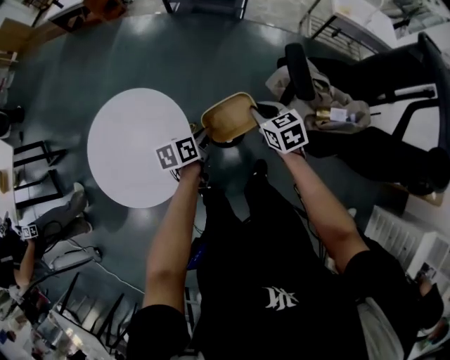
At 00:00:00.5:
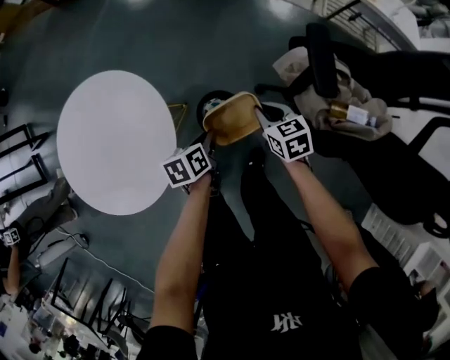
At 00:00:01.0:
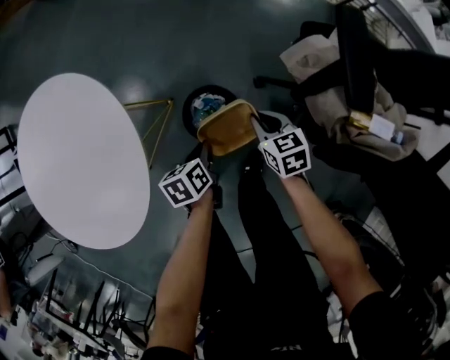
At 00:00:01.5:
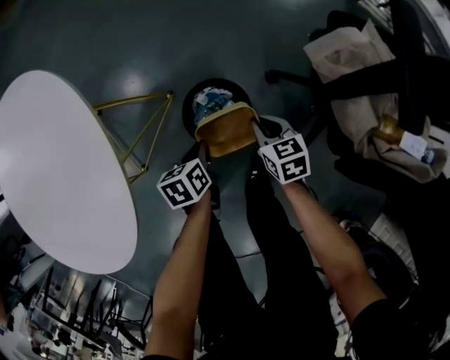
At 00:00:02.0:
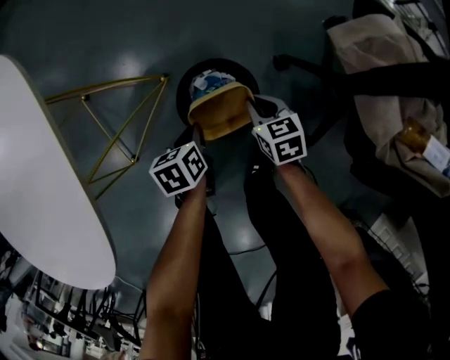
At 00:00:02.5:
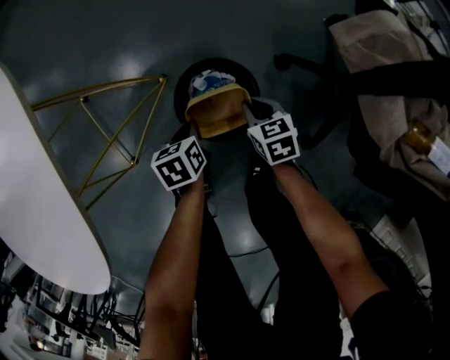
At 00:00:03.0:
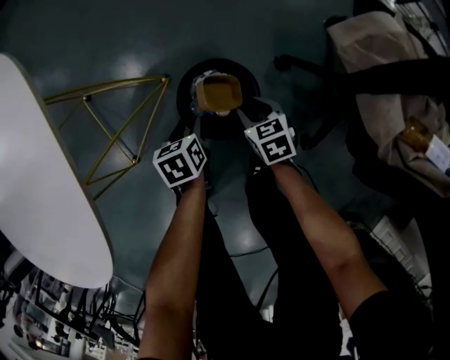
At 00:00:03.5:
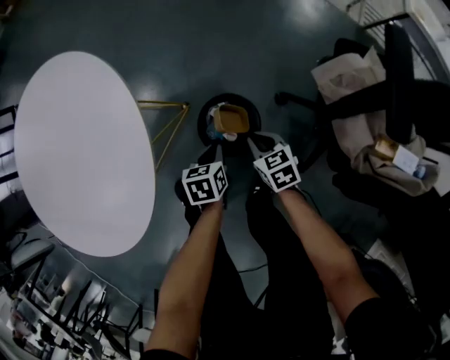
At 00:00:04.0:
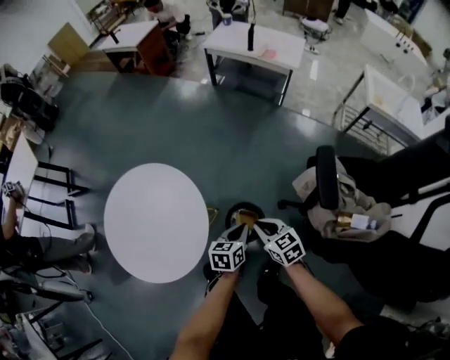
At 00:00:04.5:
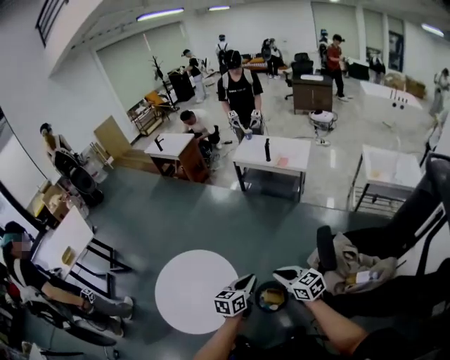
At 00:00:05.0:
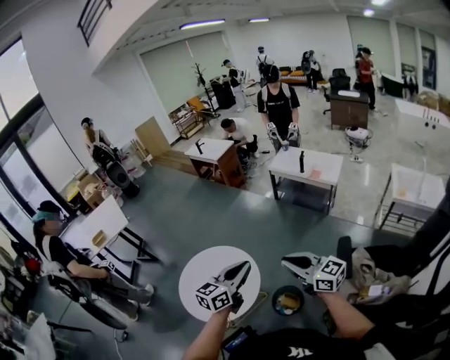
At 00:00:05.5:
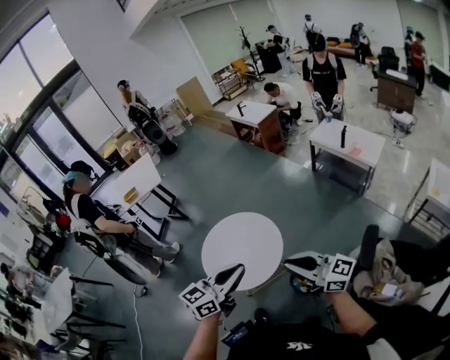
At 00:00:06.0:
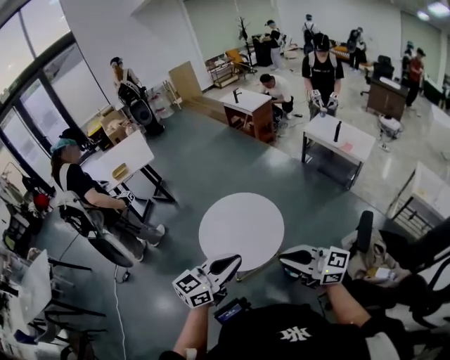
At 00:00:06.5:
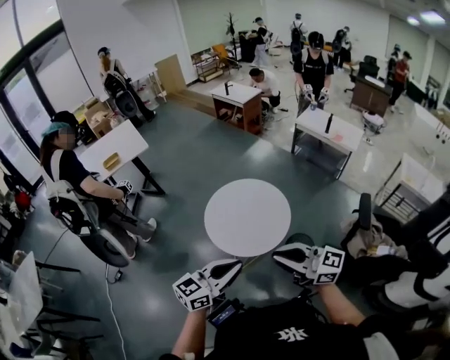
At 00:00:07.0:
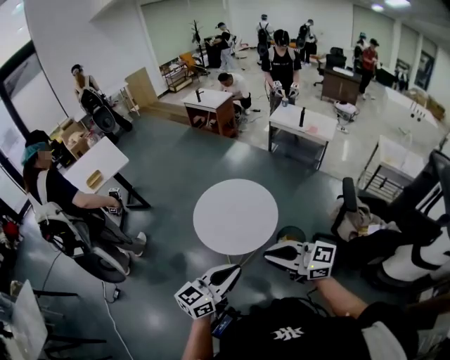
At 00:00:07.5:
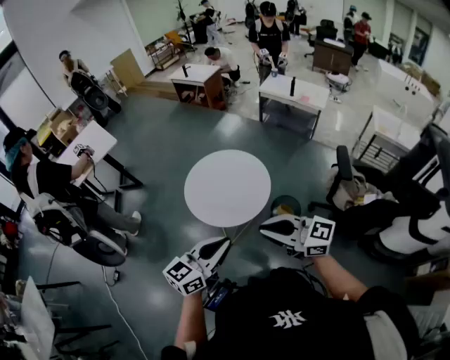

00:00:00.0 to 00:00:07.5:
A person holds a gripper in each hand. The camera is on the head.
00:00:00.0 to 00:00:02.0: The grippers both shift downward by about 50 cm. The left gripper turns by approximately 30 degrees.
00:00:02.0 to 00:00:04.0: Both grippers travel together upward, about 30 cm. The left gripper changes its angle by some 30 degrees, and opens, then closes again. Meanwhile the right gripper opens and closes again.
00:00:04.0 to 00:00:05.5: The two grippers go approximately 40 cm upward. The left gripper points its fingers approximately 30 degrees further upward, while the right gripper points its fingers approximately 50 degrees further upward.
00:00:05.5 to 00:00:07.5: Both grippers travel together to the left and backward, some 30 cm.

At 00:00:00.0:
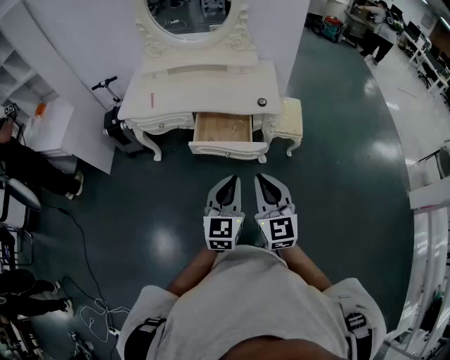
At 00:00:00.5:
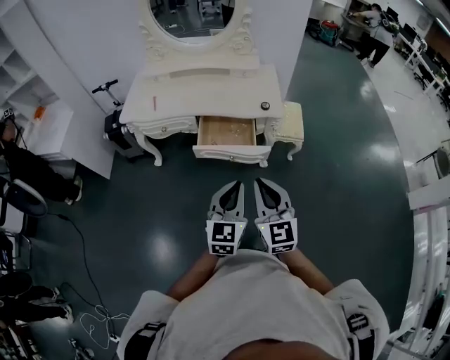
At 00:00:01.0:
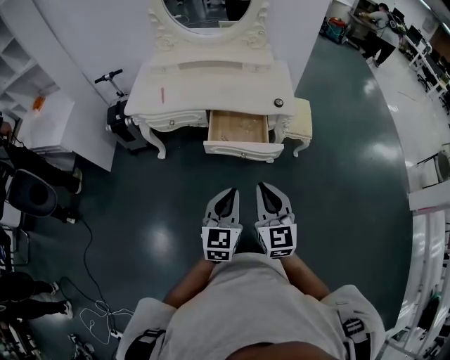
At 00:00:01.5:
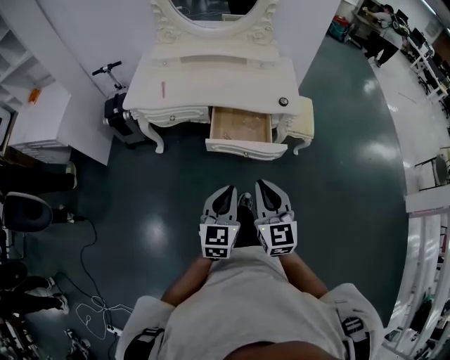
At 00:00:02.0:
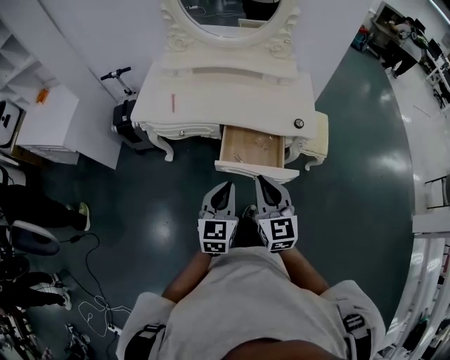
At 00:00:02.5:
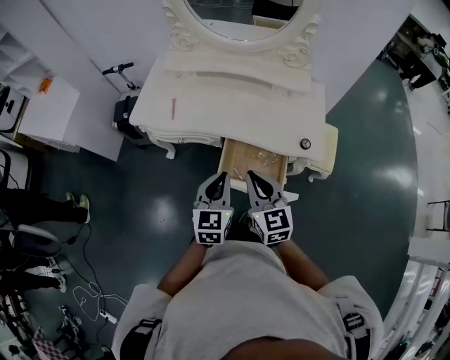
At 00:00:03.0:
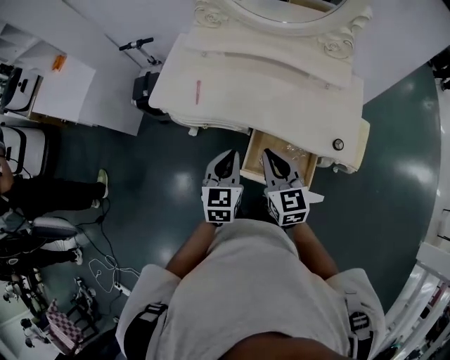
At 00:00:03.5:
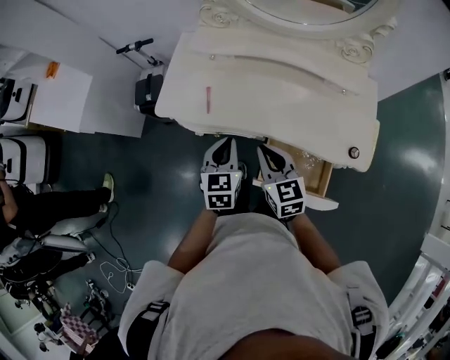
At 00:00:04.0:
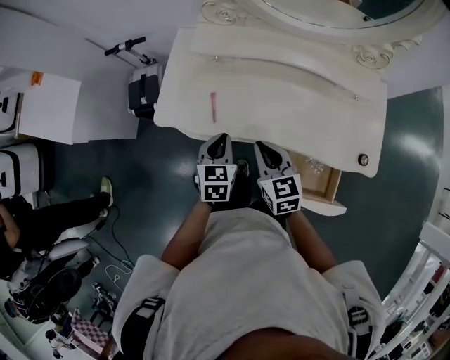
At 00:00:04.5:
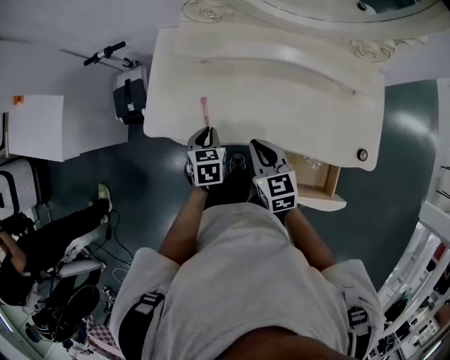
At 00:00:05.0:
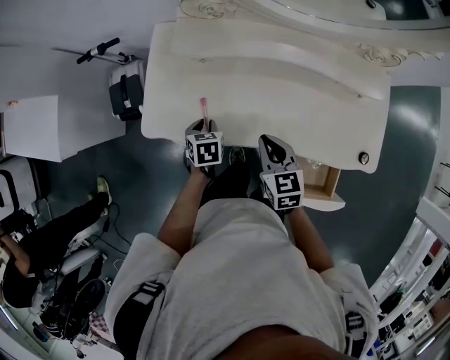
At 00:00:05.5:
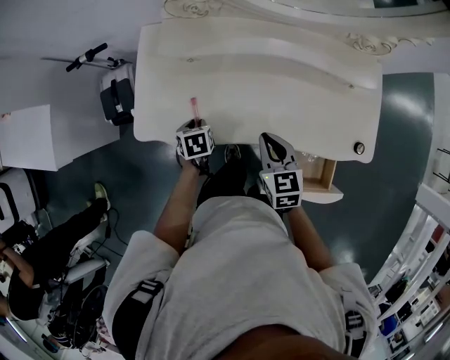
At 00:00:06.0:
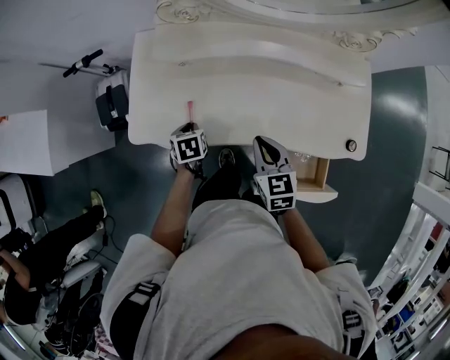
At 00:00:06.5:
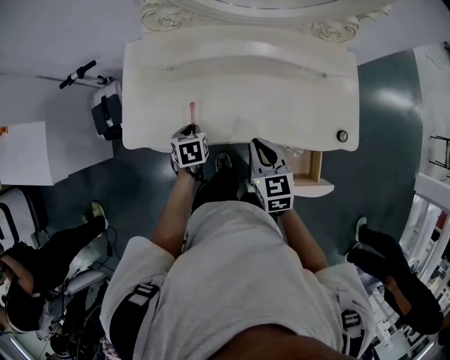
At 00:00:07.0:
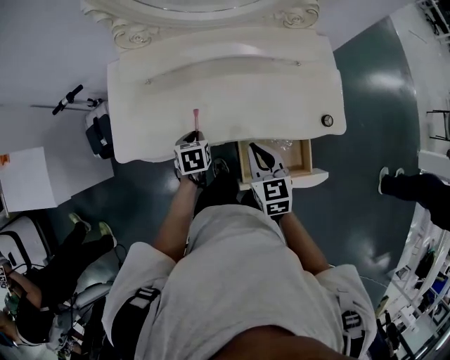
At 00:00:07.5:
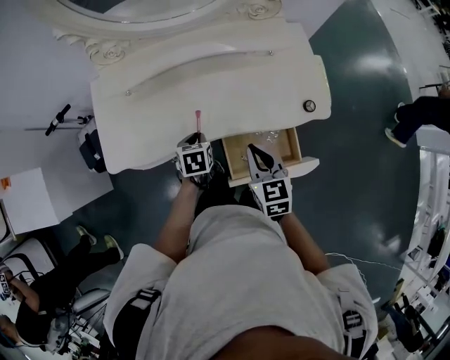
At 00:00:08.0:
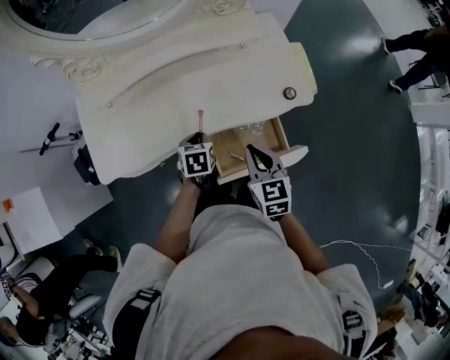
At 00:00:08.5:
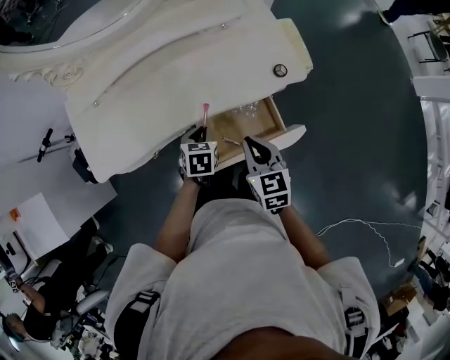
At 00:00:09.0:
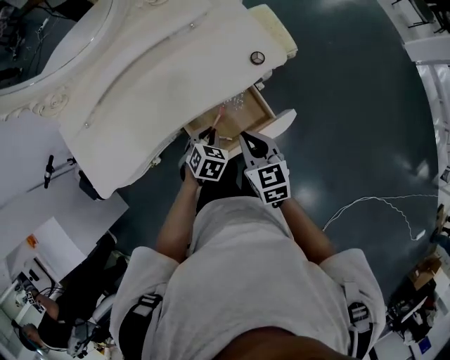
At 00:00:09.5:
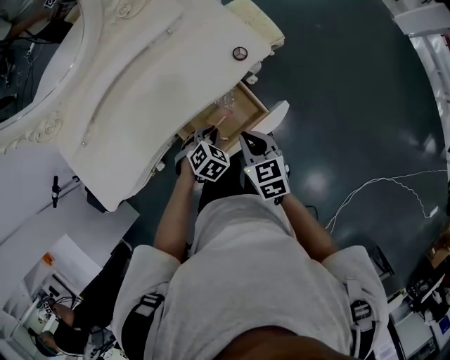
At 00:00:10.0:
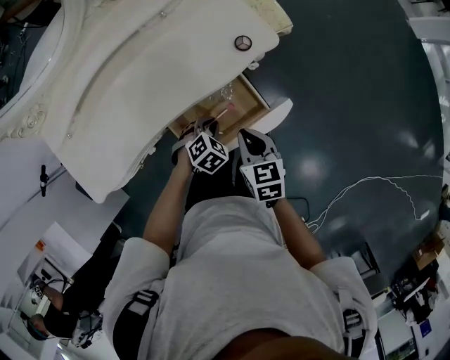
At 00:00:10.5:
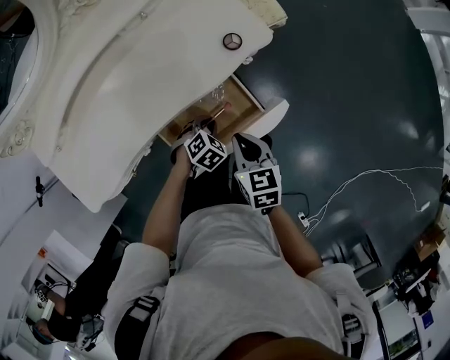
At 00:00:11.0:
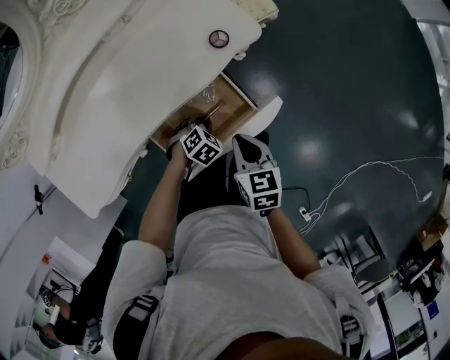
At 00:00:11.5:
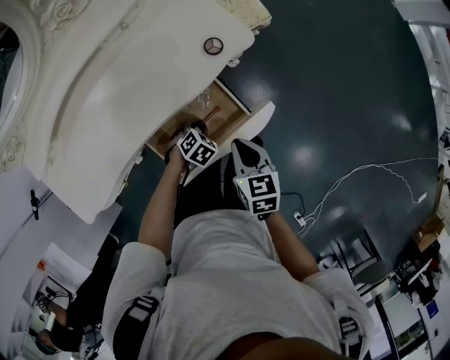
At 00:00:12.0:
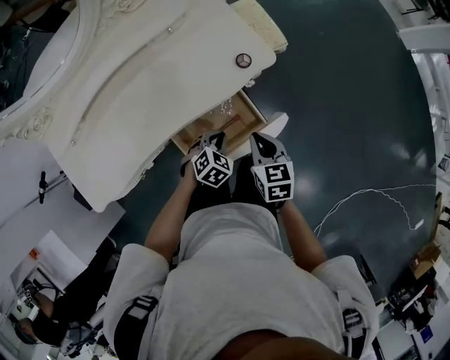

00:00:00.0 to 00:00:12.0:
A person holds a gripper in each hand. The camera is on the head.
00:00:00.0 to 00:00:02.0: The left gripper shifts roughly 25 cm forward, to the left and downward. Meanwhile the right gripper travels forward and to the left by approximately 20 cm.
00:00:02.0 to 00:00:04.0: The two grippers go roughly 40 cm forward. The right gripper rotates approximately 20 degrees; the left gripper changes its angle by approximately 20 degrees.
00:00:04.0 to 00:00:06.0: The left gripper travels downward and forward by approximately 15 cm, and changes its angle by roughly 30 degrees. The right gripper shifts some 5 cm to the right.
00:00:06.0 to 00:00:08.0: The left gripper moves about 30 cm, and turns by roughly 30 degrees. Meanwhile the right gripper changes place by roughly 25 cm, and rotates some 20 degrees.
00:00:08.0 to 00:00:10.0: The left gripper shifts by about 20 cm, and rolls clockwise, seen from behind, by roughly 60 degrees, while the right gripper travels downward by some 10 cm, and changes its angle by approximately 20 degrees.
00:00:10.0 to 00:00:12.0: The left gripper travels downward and back again, some 10 cm each way.

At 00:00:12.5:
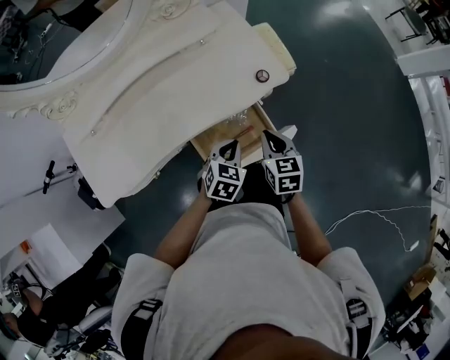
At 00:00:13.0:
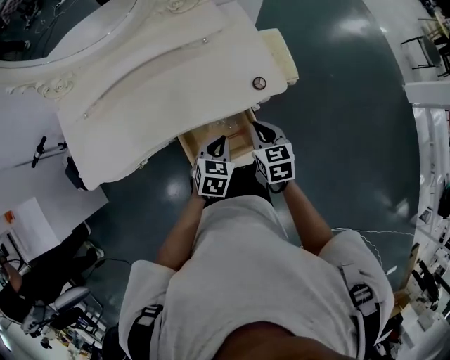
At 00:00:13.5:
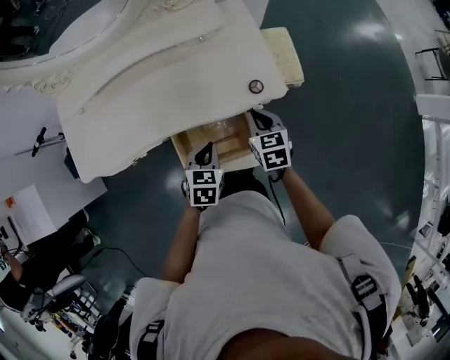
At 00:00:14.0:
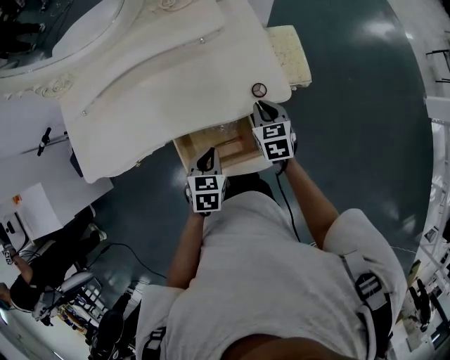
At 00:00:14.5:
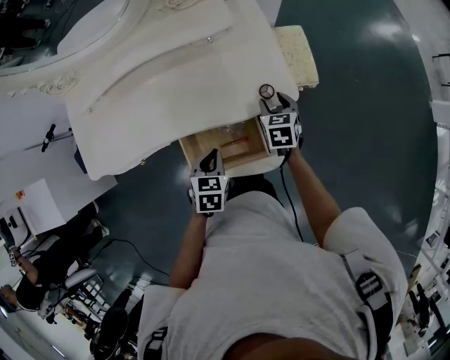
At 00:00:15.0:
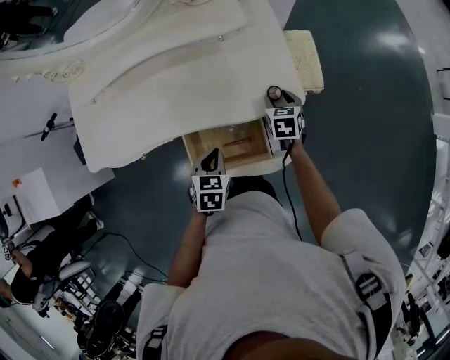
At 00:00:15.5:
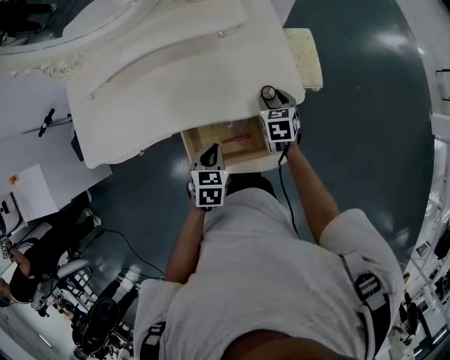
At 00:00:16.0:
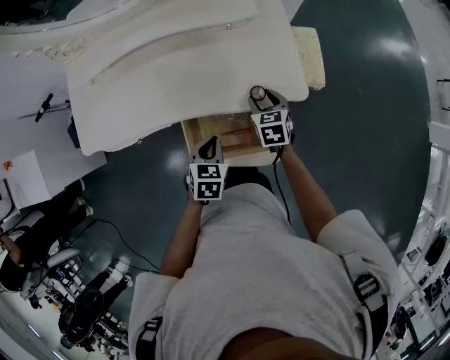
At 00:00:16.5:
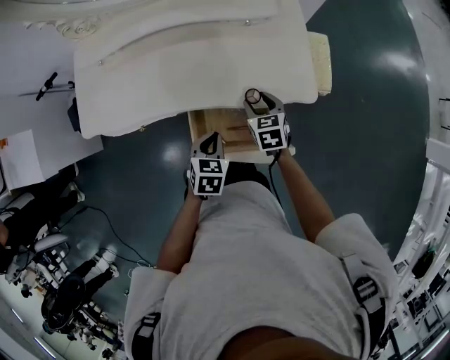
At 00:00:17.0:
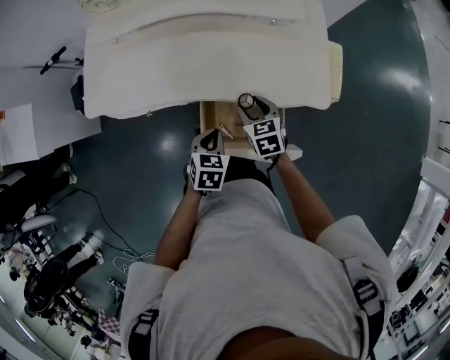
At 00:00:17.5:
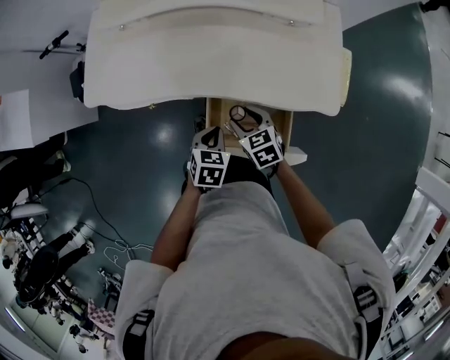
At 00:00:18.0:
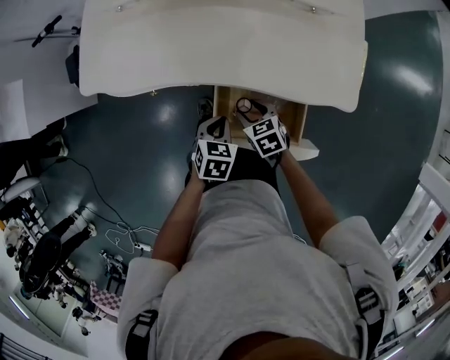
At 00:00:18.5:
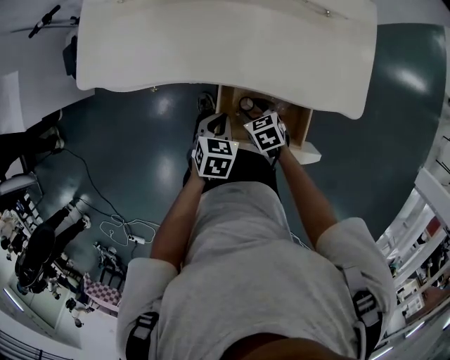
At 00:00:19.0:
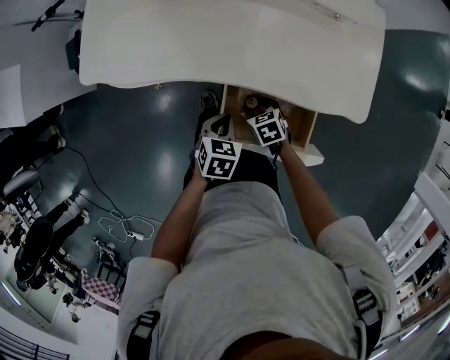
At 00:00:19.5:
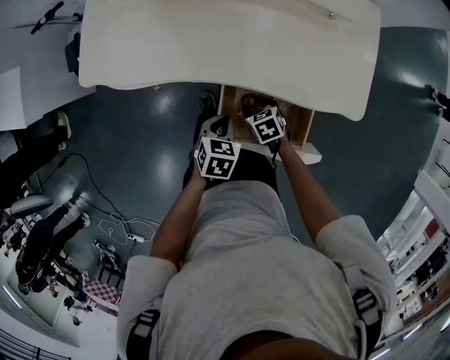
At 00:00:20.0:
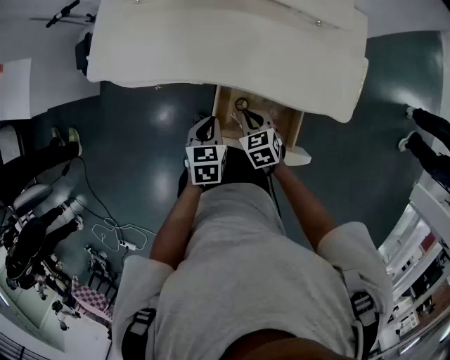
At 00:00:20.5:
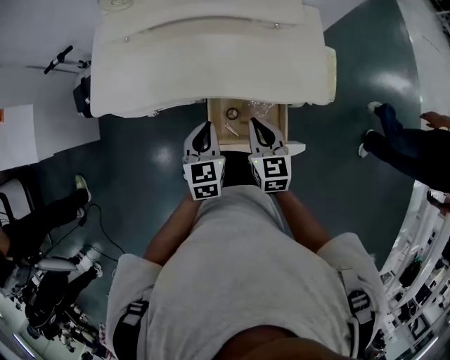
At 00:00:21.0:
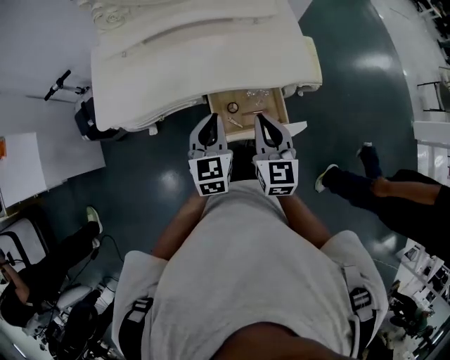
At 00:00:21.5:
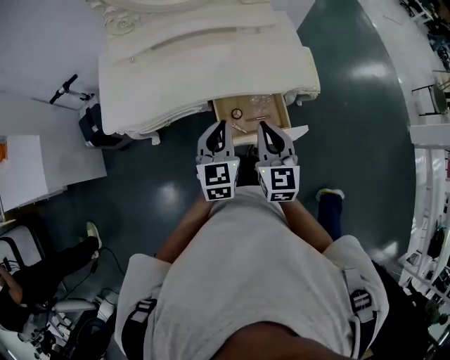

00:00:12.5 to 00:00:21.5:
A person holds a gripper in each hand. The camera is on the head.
00:00:12.5 to 00:00:14.5: The left gripper turns by roughly 30 degrees. The right gripper changes place by roughly 20 cm, and opens up.
00:00:14.5 to 00:00:17.0: The left gripper is displaced to the left by about 5 cm, while the right gripper is displaced to the left by about 20 cm, and rotates some 30 degrees.
00:00:17.0 to 00:00:19.5: The left gripper shifts roughly 10 cm downward and to the left, while the right gripper moves downward and to the left, some 20 cm, and swivels about 30 degrees.
00:00:19.5 to 00:00:21.5: The right gripper is displaced upward by some 35 cm, tilts its fingers about 50 degrees upward, and closes, while the left gripper heads upward, covering about 25 cm, and tips its fingers upward by approximately 50 degrees.
